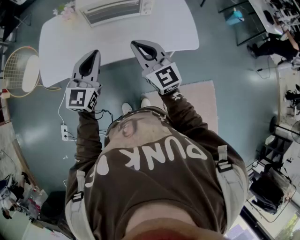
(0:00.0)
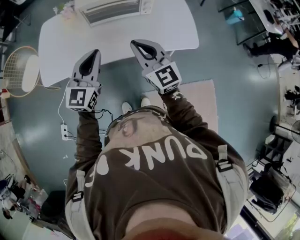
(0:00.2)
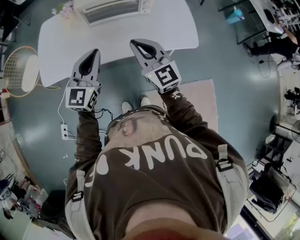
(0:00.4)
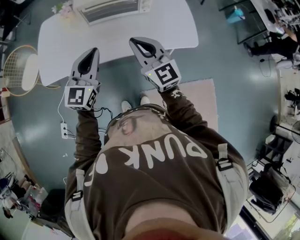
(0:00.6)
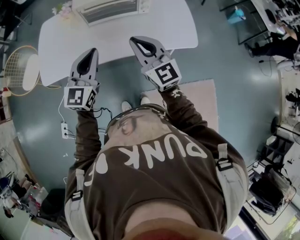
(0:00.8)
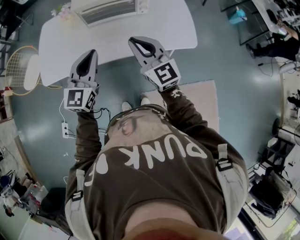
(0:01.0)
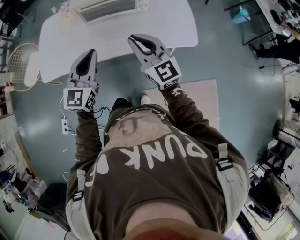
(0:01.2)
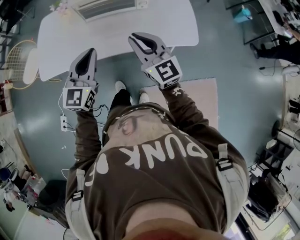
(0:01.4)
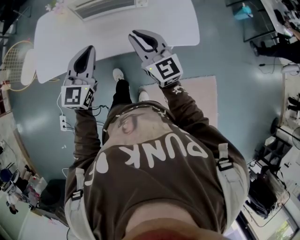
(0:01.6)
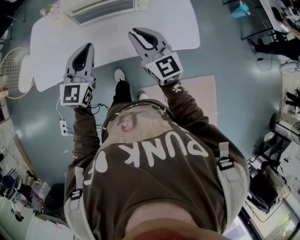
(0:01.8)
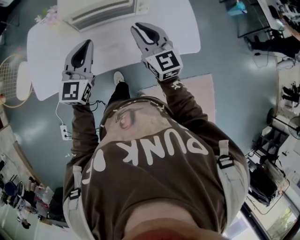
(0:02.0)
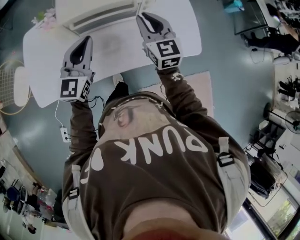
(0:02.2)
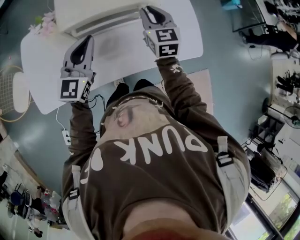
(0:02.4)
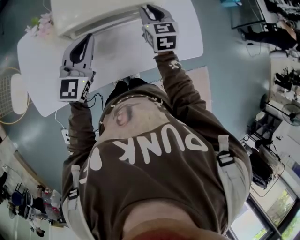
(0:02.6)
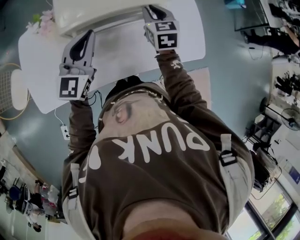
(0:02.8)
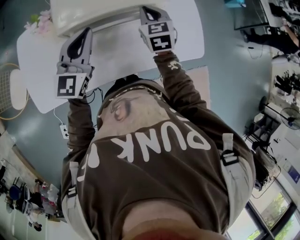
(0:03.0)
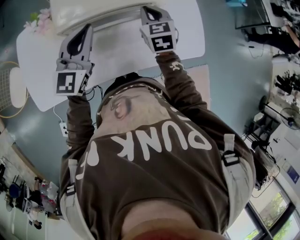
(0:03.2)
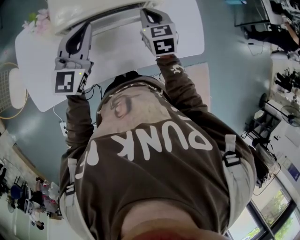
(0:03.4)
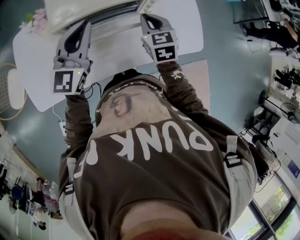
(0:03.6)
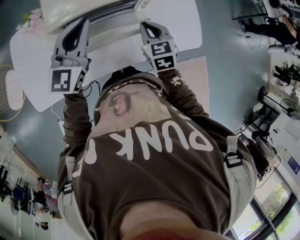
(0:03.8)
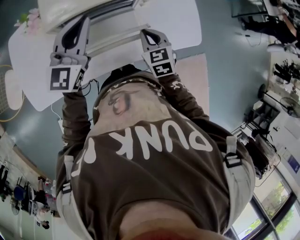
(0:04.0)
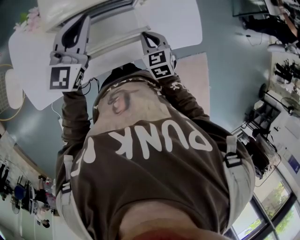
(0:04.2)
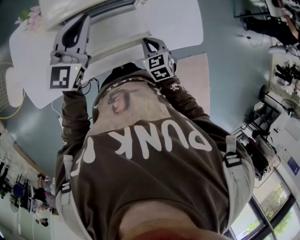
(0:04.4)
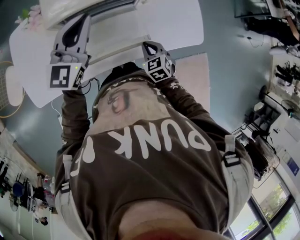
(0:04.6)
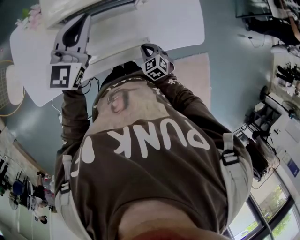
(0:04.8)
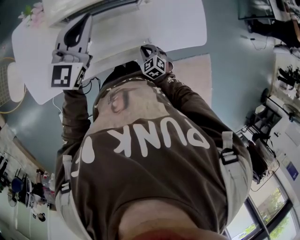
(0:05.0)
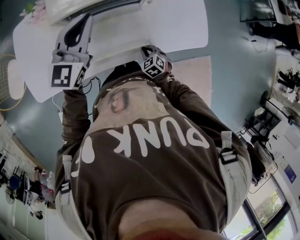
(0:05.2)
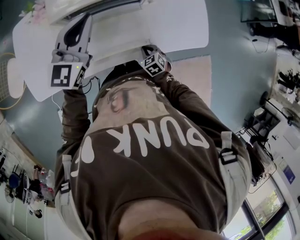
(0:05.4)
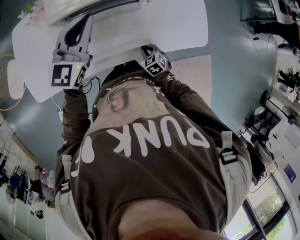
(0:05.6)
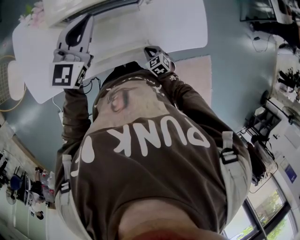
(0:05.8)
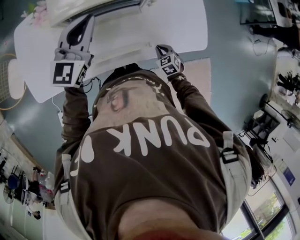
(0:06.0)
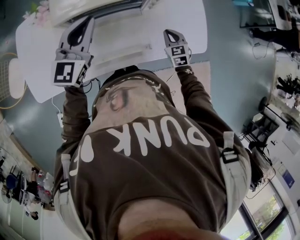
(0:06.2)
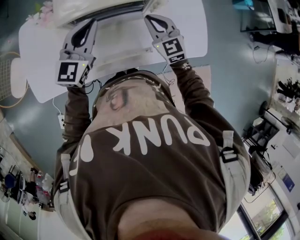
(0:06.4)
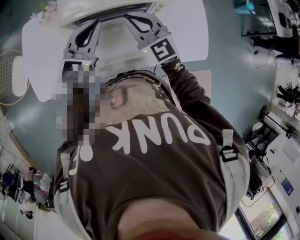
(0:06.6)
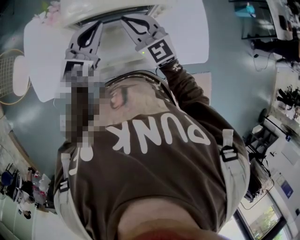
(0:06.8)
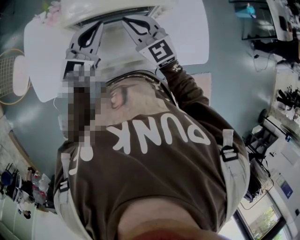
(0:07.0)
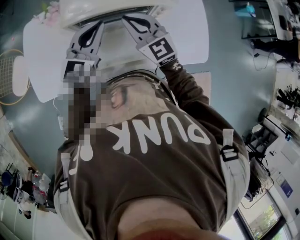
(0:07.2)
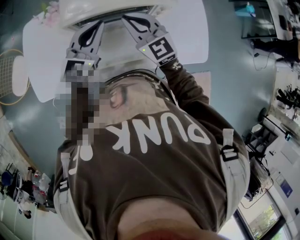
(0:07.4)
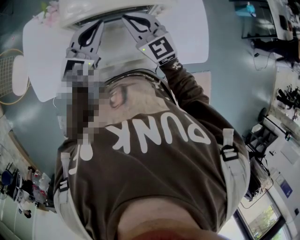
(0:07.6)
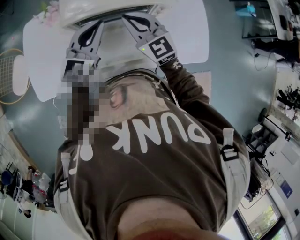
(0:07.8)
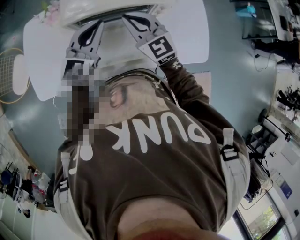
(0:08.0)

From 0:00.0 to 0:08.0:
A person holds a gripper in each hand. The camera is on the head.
From 0:00.0 to 0:01.6: The left gripper changes place by some 5 cm, while the right gripper moves to the right, roughly 5 cm.
From 0:01.6 to 0:03.2: Both grippers move forward, roughly 25 cm. The right gripper tips its fingers downward by roughly 30 degrees.
From 0:03.2 to 0:04.8: The right gripper shifts about 30 cm downward and backward, and swivels roughly 30 degrees.
From 0:04.8 to 0:06.4: The right gripper moves upward and forward, some 25 cm, and tips its fingers upward by roughly 40 degrees.
From 0:06.4 to 0:08.0: The right gripper moves to the left and upward, some 10 cm.

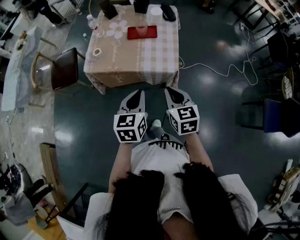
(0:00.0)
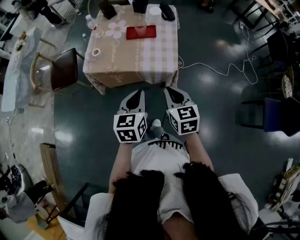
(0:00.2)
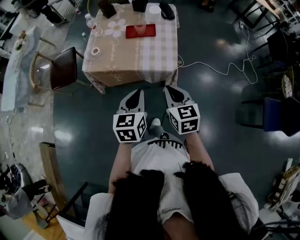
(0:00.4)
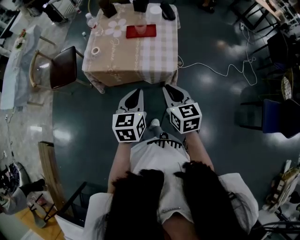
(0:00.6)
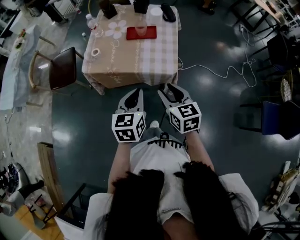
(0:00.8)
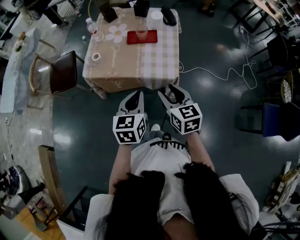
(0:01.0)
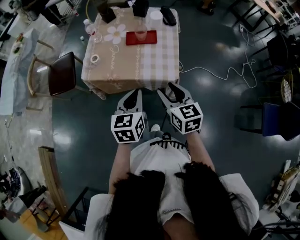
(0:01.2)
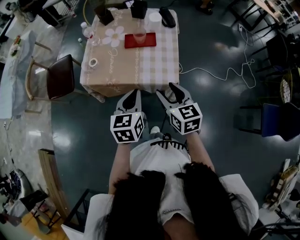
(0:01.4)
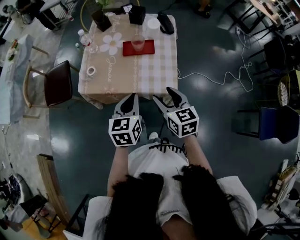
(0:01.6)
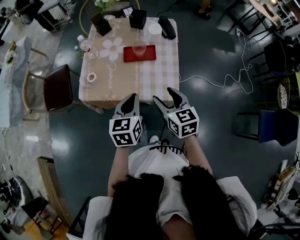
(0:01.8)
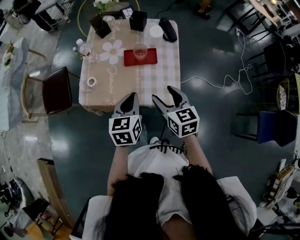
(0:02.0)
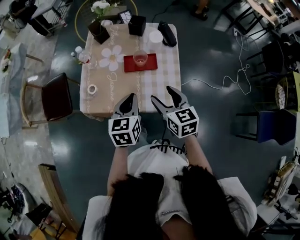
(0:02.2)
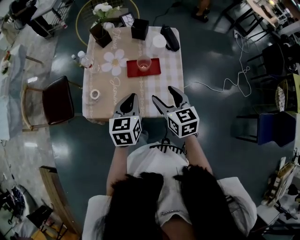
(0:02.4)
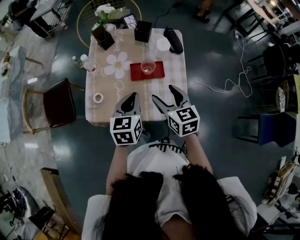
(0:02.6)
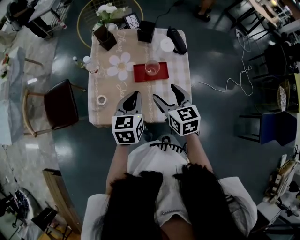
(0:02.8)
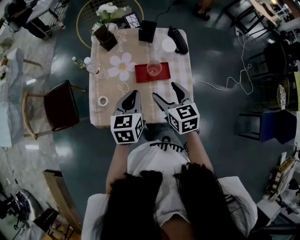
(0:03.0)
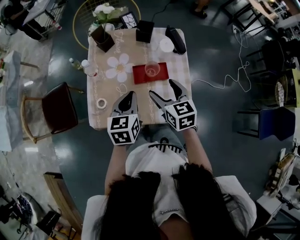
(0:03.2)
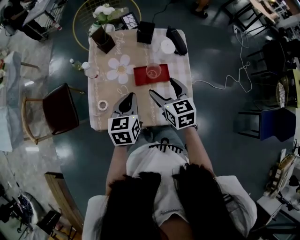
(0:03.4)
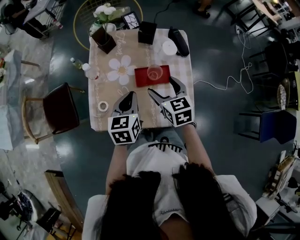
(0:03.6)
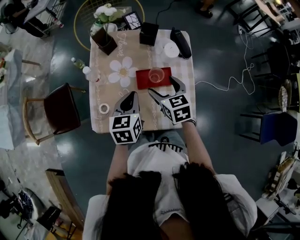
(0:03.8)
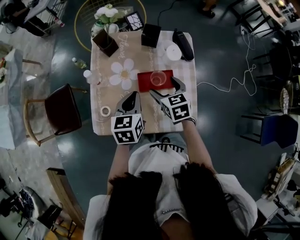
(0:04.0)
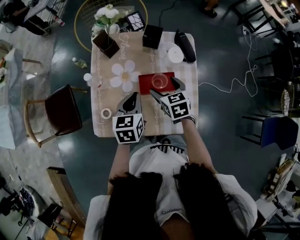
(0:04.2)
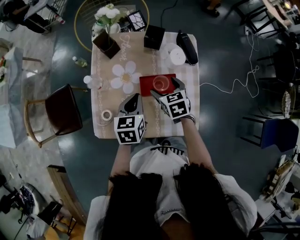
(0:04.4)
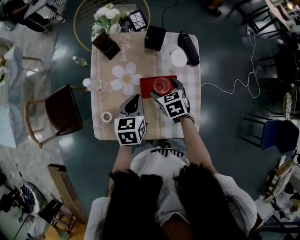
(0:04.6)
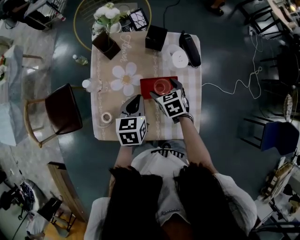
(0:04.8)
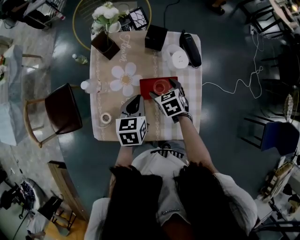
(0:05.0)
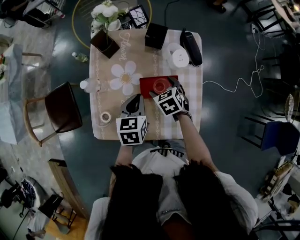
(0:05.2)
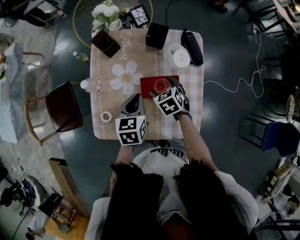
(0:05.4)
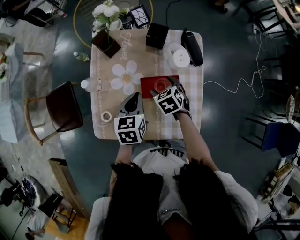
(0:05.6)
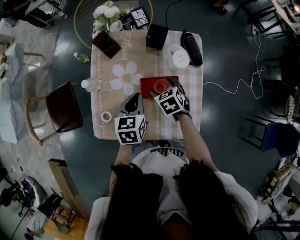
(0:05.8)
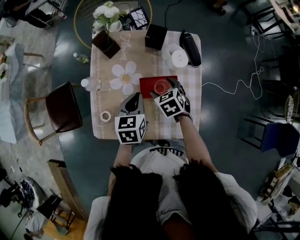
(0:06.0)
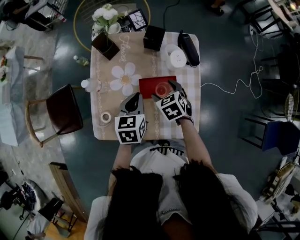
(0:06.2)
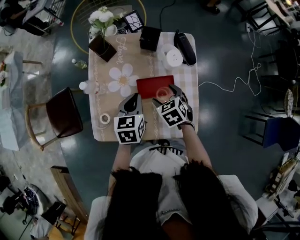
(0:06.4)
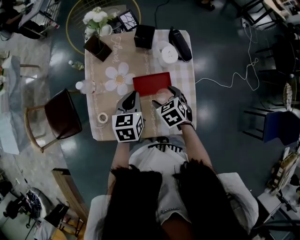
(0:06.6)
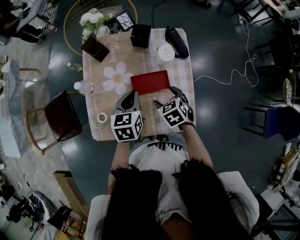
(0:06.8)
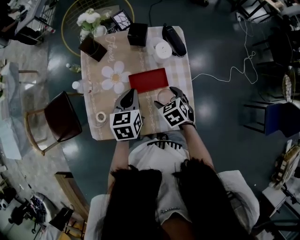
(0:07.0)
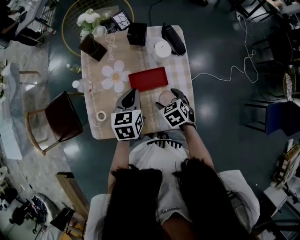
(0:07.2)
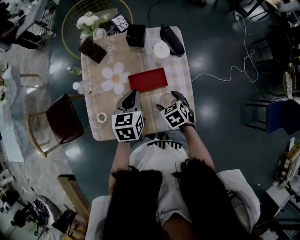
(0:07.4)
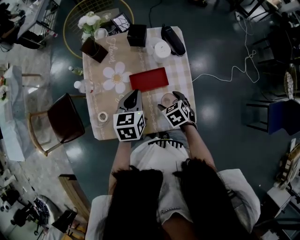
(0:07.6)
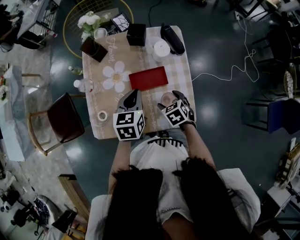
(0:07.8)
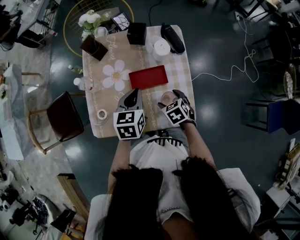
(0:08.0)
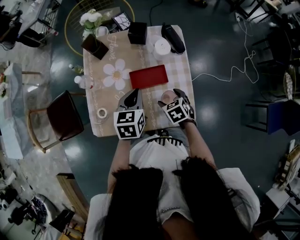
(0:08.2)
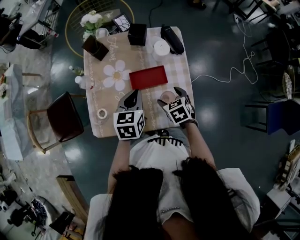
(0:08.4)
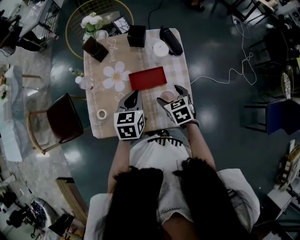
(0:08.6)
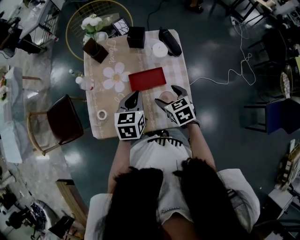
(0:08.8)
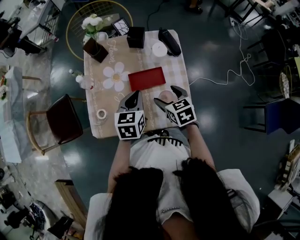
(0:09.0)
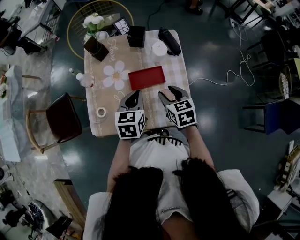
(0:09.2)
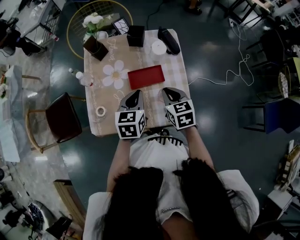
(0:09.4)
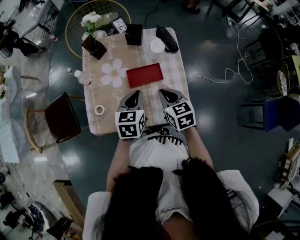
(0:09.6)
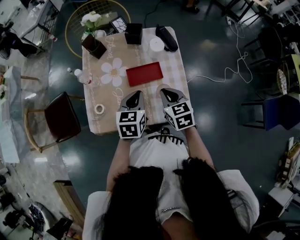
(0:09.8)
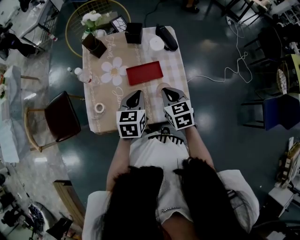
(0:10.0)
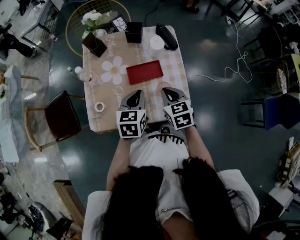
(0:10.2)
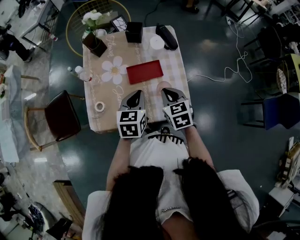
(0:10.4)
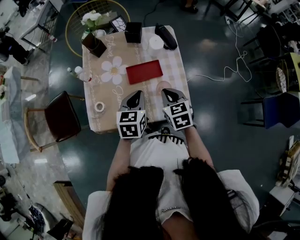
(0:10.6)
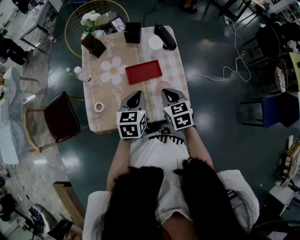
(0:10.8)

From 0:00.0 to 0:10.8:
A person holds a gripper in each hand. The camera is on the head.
From 0:00.0 to 0:01.6: The two grippers go about 10 cm forward. The right gripper opens up.
From 0:01.6 to 0:03.0: Both grippers travel together forward, roughly 20 cm.
From 0:03.0 to 0:04.6: The right gripper shifts approximately 20 cm forward and downward, and turns by about 20 degrees. Meanwhile the left gripper is displaced forward and downward by roughly 10 cm.
From 0:04.6 to 0:06.2: The grippers stay close to where they were, moving slightly.
From 0:06.2 to 0:07.8: The right gripper moves backward and to the right, approximately 10 cm; the left gripper moves roughly 5 cm.
From 0:07.8 to 0:09.2: The right gripper travels upward by some 10 cm, changes its angle by about 20 degrees, and closes its fingers.
From 0:09.2 to 0:10.8: The right gripper closes its fingers.

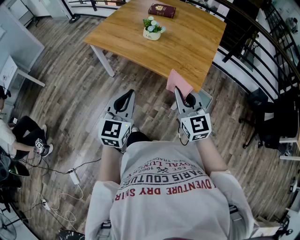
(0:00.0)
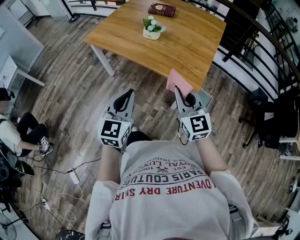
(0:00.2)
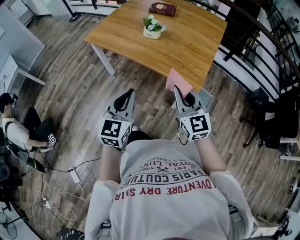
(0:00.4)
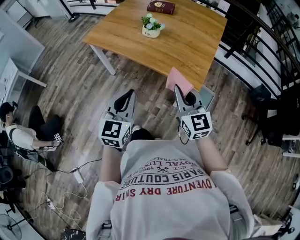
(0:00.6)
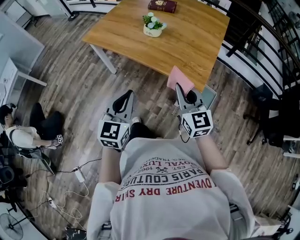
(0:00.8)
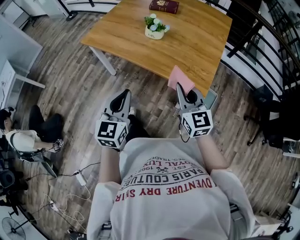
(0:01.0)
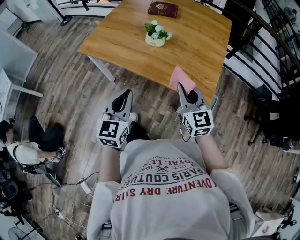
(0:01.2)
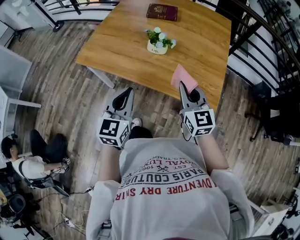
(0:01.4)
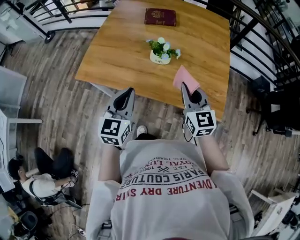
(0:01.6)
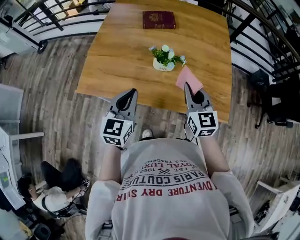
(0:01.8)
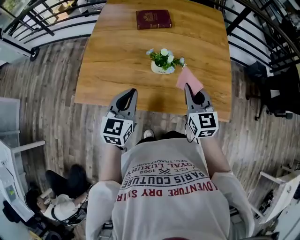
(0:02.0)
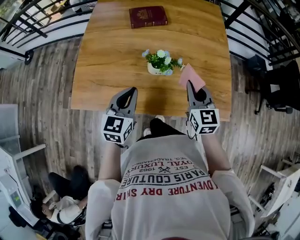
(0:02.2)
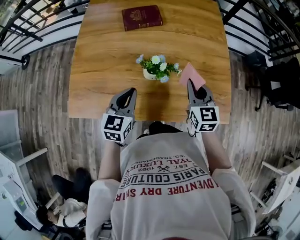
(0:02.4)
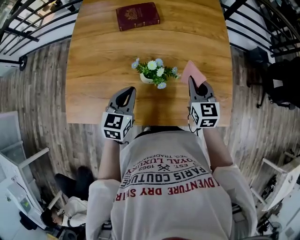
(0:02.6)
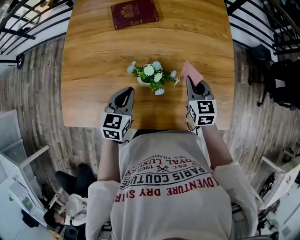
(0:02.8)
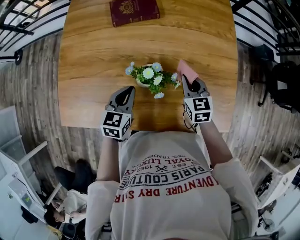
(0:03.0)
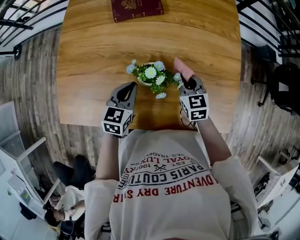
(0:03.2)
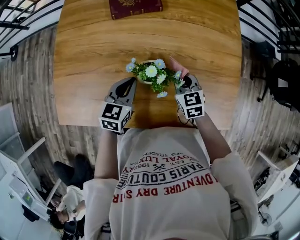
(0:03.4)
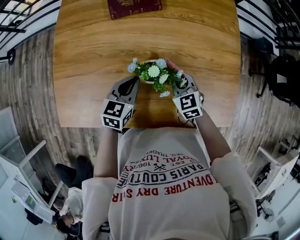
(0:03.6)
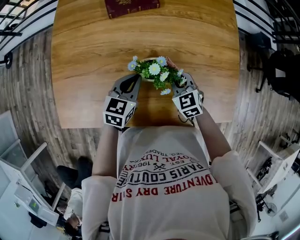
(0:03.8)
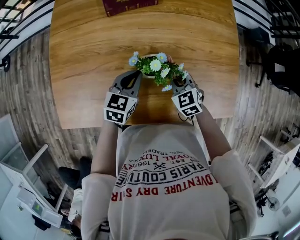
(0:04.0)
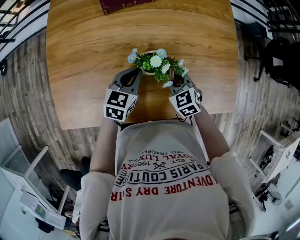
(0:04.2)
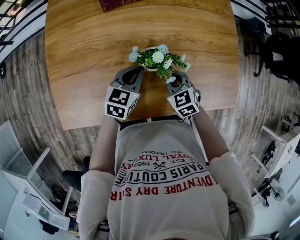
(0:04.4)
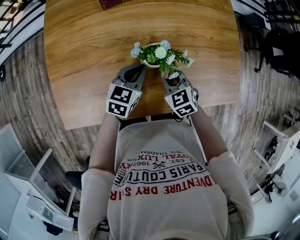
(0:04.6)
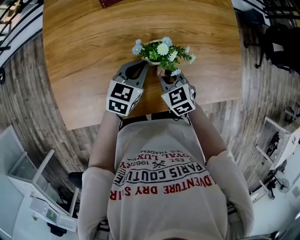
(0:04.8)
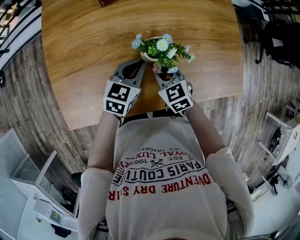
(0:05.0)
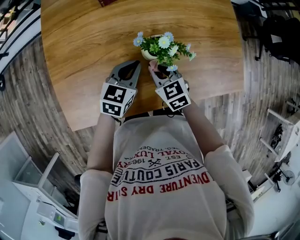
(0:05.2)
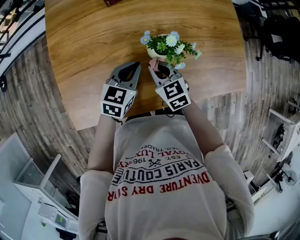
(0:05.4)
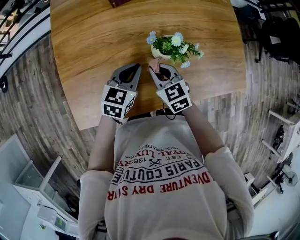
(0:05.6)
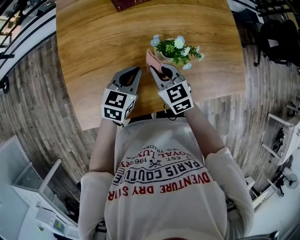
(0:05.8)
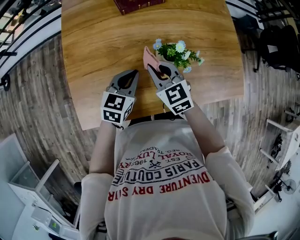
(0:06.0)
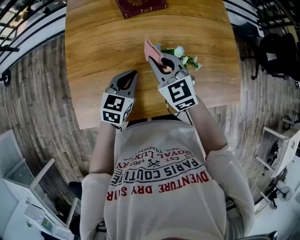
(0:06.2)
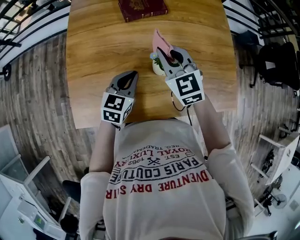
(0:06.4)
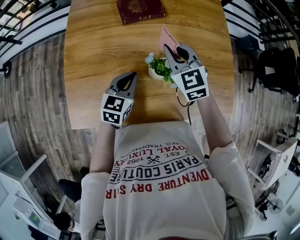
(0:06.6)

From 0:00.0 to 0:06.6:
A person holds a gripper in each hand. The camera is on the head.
From 0:00.0 to 0:01.6: The right gripper moves forward, some 25 cm, and rotates some 20 degrees, while the left gripper is displaced forward and to the left by approximately 30 cm.
From 0:01.6 to 0:03.2: Both grippers move forward and downward, roughly 30 cm. The left gripper rotates some 30 degrees, while the right gripper turns by approximately 30 degrees.
From 0:03.2 to 0:05.0: The right gripper shifts some 15 cm to the left and backward, while the left gripper swivels roughly 20 degrees.
From 0:05.0 to 0:06.6: The left gripper heads to the left and upward, covering roughly 10 cm. Meanwhile the right gripper travels upward and forward by some 20 cm, and changes its angle by about 20 degrees.
